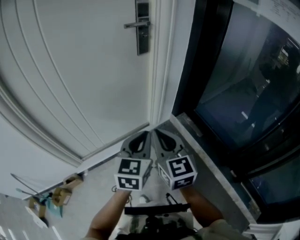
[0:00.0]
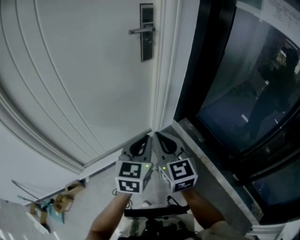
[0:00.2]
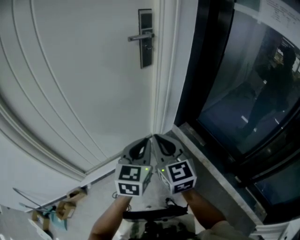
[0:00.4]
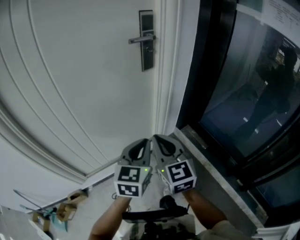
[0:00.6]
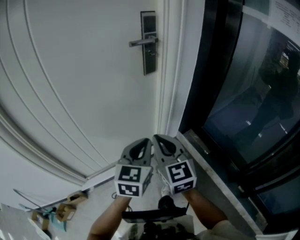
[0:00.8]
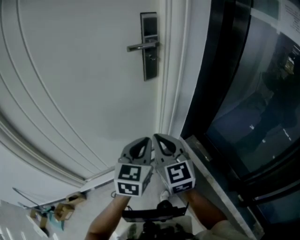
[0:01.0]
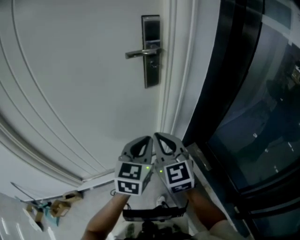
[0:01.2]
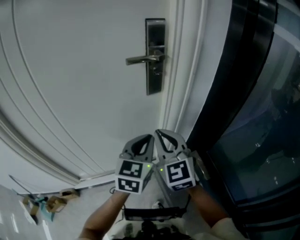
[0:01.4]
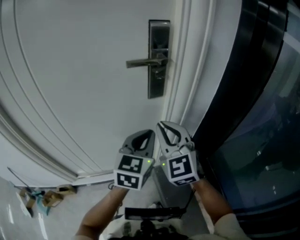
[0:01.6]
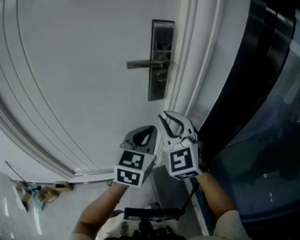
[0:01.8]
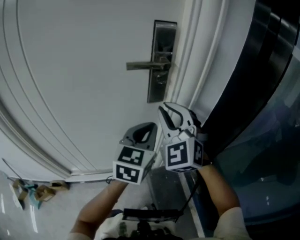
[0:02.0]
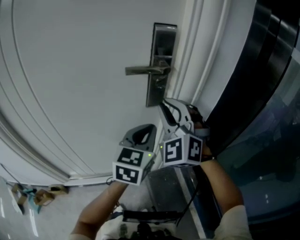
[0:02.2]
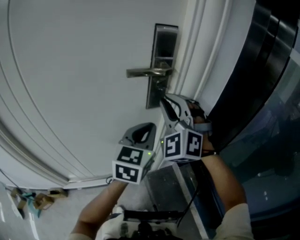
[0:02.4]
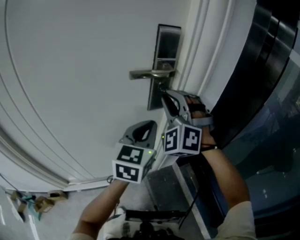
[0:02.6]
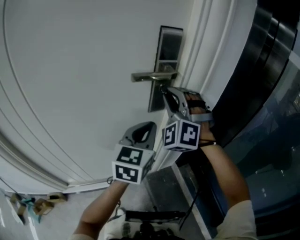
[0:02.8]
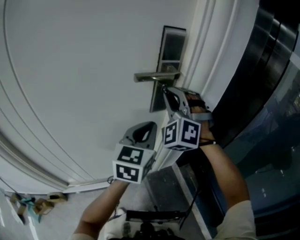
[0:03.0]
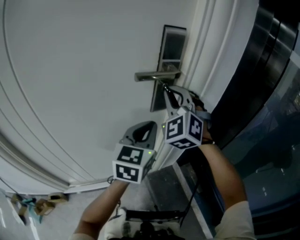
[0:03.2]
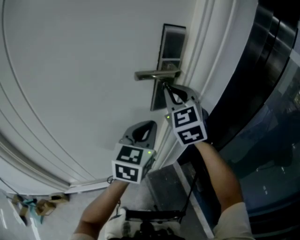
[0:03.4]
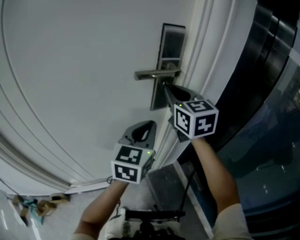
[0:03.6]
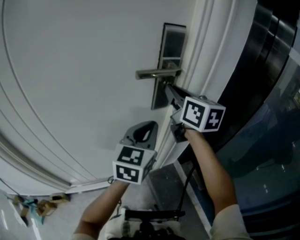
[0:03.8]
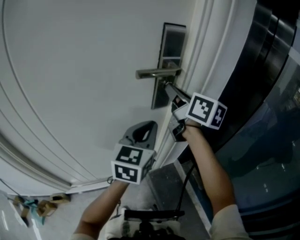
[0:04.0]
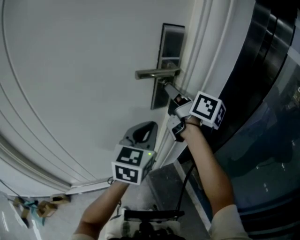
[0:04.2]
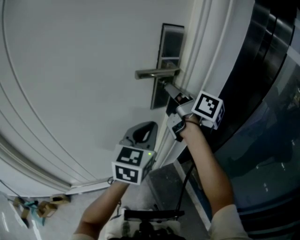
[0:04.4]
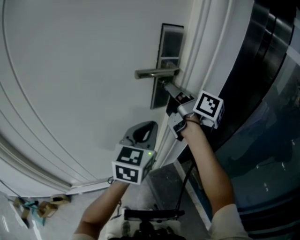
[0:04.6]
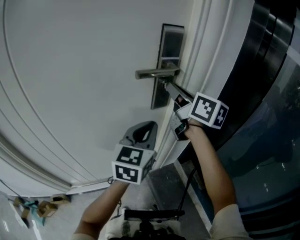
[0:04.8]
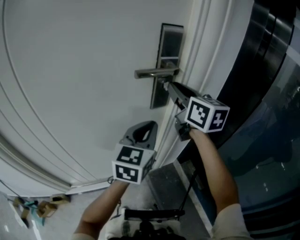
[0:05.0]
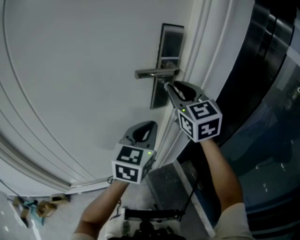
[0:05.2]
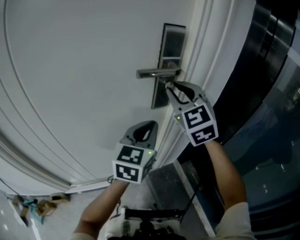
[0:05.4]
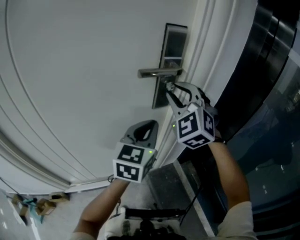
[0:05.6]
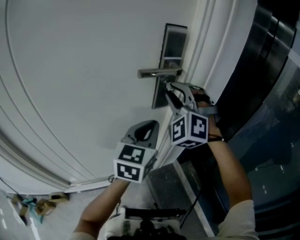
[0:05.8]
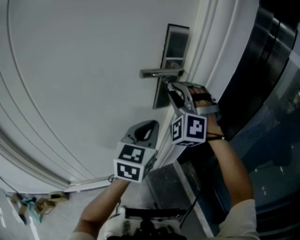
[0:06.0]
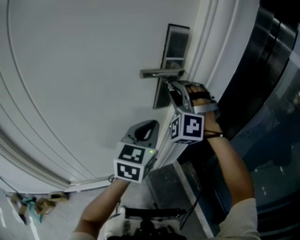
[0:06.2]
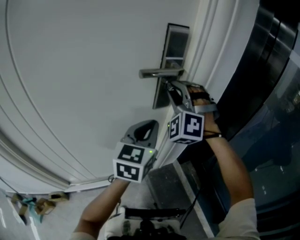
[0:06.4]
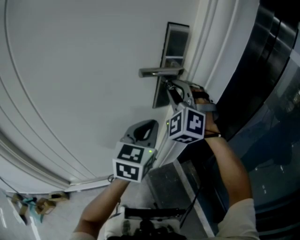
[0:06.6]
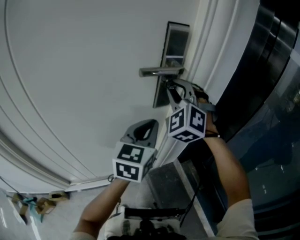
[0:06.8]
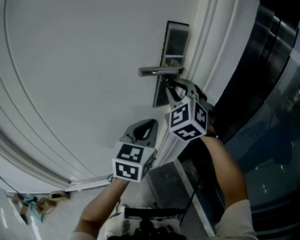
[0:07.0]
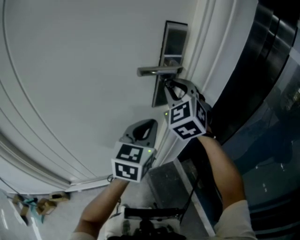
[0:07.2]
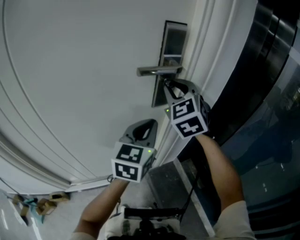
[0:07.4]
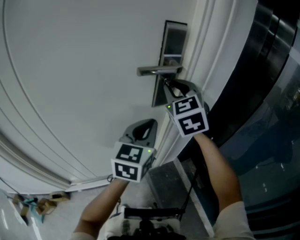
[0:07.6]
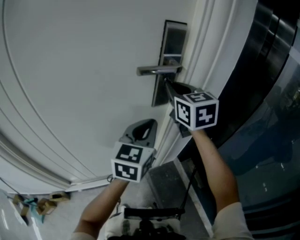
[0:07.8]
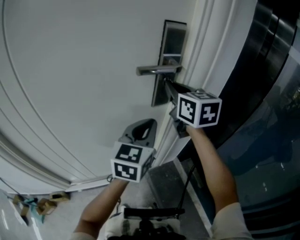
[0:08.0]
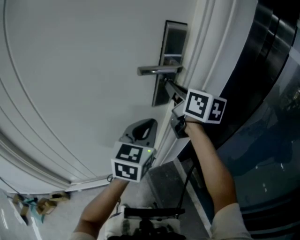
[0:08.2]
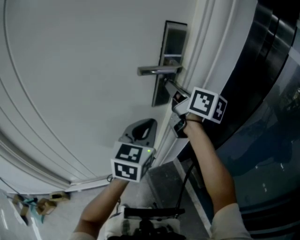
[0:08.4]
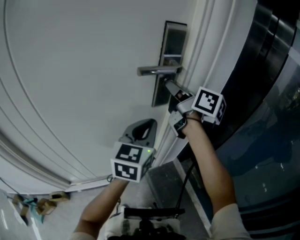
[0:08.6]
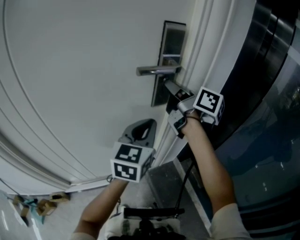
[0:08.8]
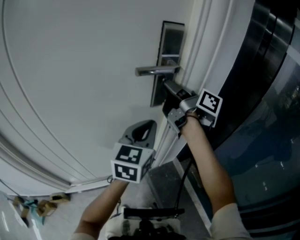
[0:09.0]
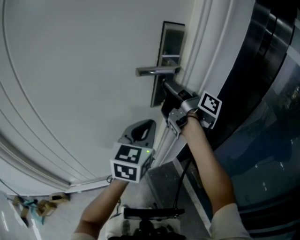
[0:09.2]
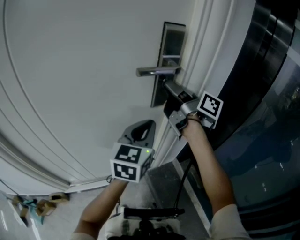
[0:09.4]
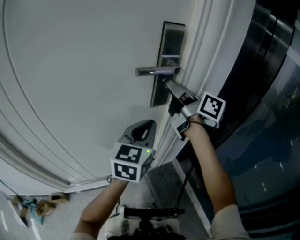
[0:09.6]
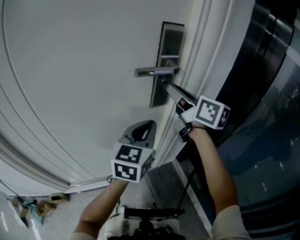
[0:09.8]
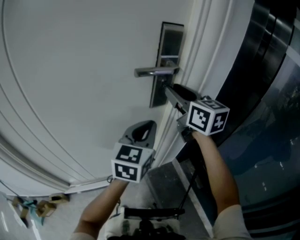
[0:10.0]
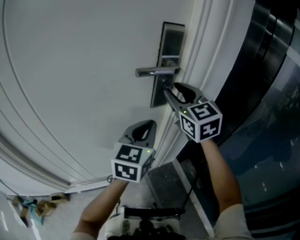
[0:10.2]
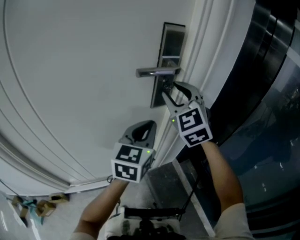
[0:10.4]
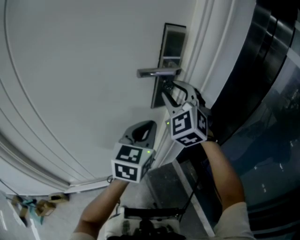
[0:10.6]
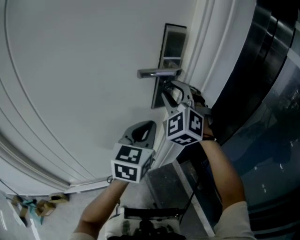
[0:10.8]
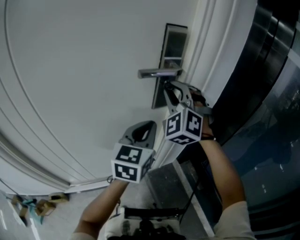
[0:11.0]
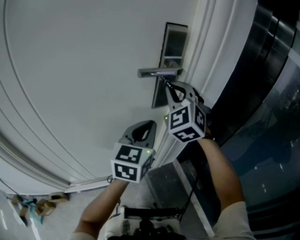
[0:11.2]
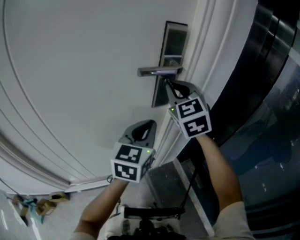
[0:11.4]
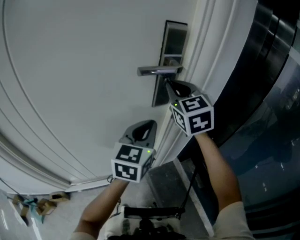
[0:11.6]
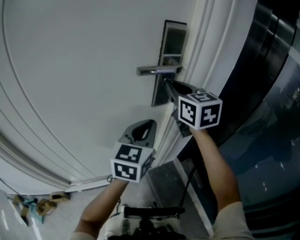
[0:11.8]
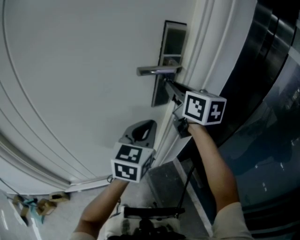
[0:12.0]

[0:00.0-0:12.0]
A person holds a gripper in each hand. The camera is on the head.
0:00.0 to 0:01.6: Both grippers travel together forward, approximately 30 cm. The right gripper swivels some 30 degrees.
0:01.6 to 0:03.0: The left gripper shifts approximately 10 cm forward; the right gripper moves forward and upward, roughly 20 cm, and twists some 50 degrees counterclockwise, seen from behind.
0:03.0 to 0:04.4: The right gripper rolls clockwise, seen from behind, by about 130 degrees.
0:04.4 to 0:06.0: The right gripper twists some 140 degrees counterclockwise, seen from behind.
0:06.0 to 0:07.6: The right gripper twists roughly 50 degrees clockwise, seen from behind.
0:07.6 to 0:09.0: The right gripper rolls clockwise, seen from behind, by approximately 100 degrees.
0:09.0 to 0:10.4: The right gripper twists approximately 110 degrees counterclockwise, seen from behind, and opens.
0:10.4 to 0:12.0: The right gripper twists roughly 50 degrees clockwise, seen from behind, and closes up.

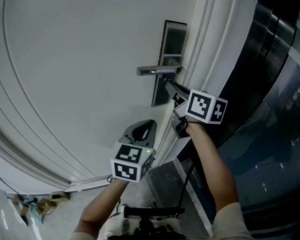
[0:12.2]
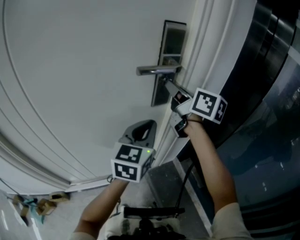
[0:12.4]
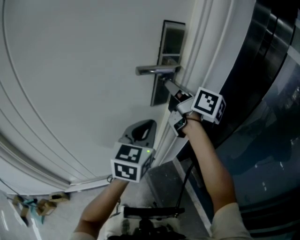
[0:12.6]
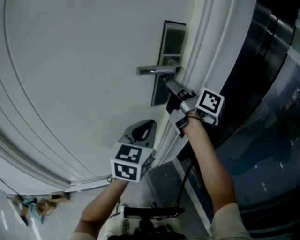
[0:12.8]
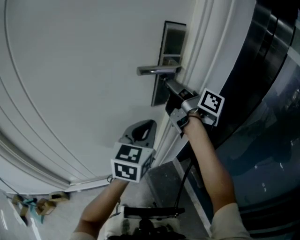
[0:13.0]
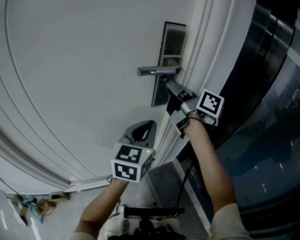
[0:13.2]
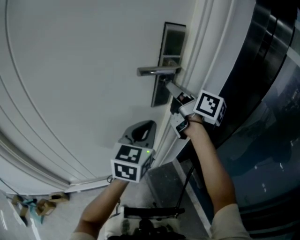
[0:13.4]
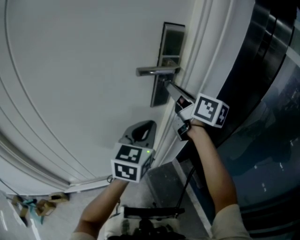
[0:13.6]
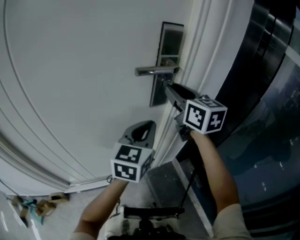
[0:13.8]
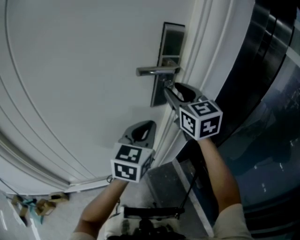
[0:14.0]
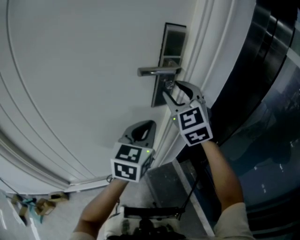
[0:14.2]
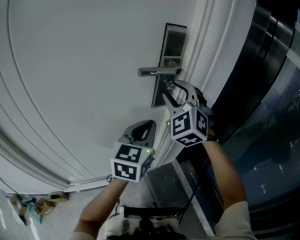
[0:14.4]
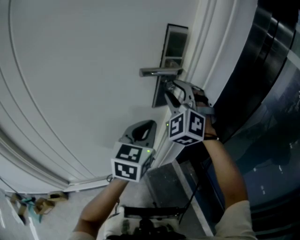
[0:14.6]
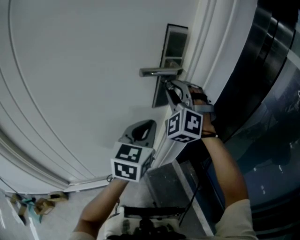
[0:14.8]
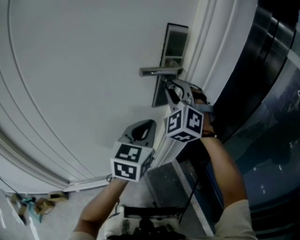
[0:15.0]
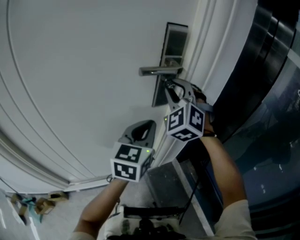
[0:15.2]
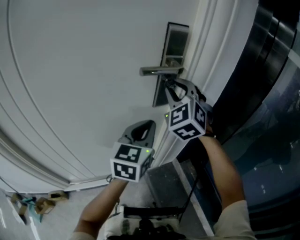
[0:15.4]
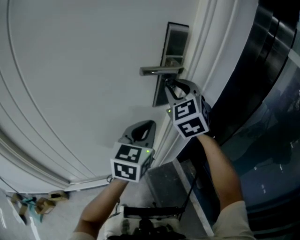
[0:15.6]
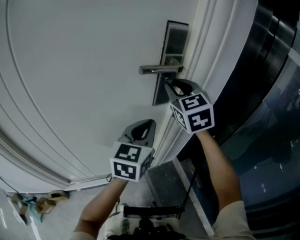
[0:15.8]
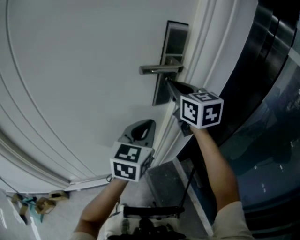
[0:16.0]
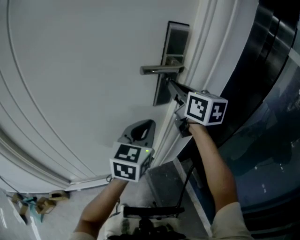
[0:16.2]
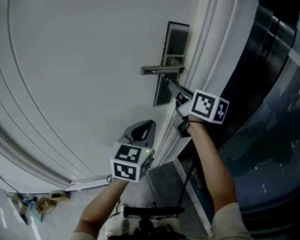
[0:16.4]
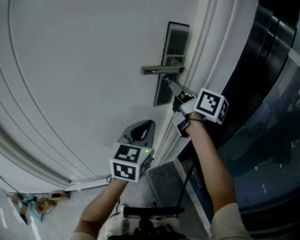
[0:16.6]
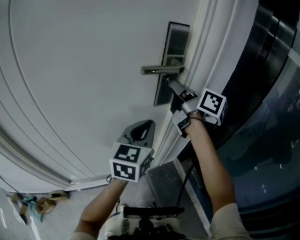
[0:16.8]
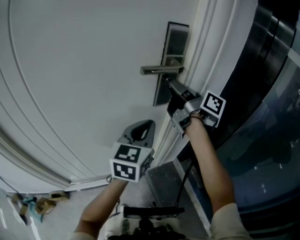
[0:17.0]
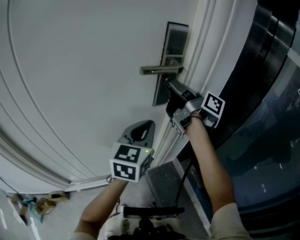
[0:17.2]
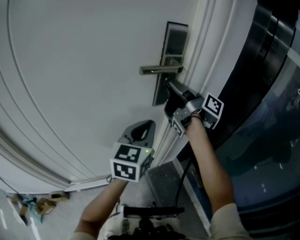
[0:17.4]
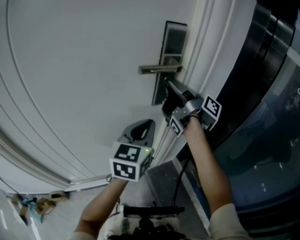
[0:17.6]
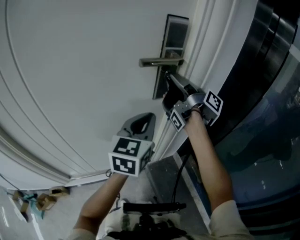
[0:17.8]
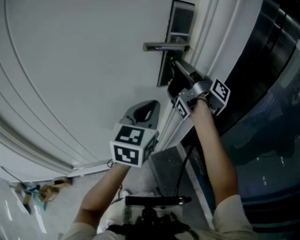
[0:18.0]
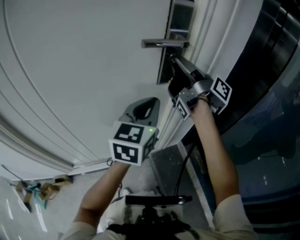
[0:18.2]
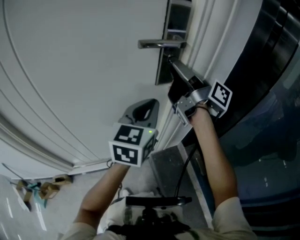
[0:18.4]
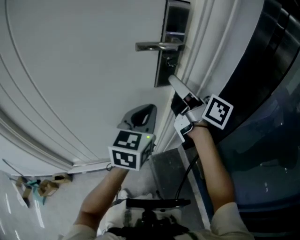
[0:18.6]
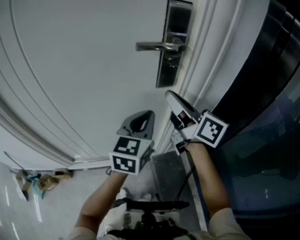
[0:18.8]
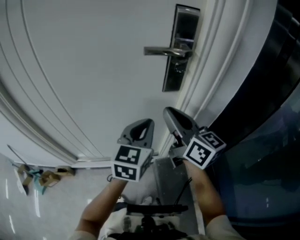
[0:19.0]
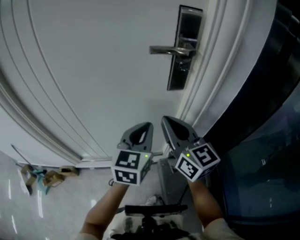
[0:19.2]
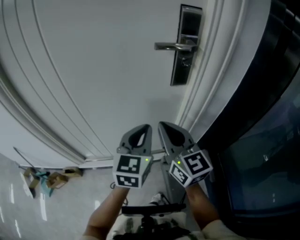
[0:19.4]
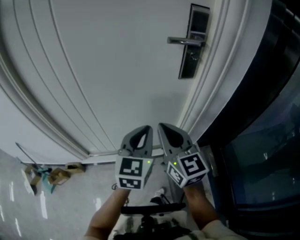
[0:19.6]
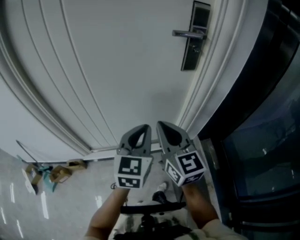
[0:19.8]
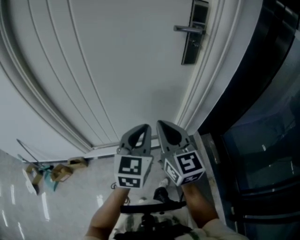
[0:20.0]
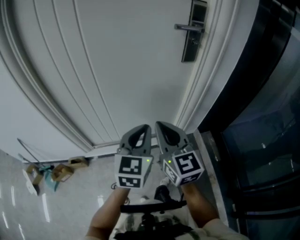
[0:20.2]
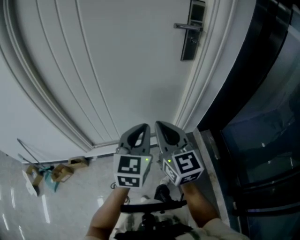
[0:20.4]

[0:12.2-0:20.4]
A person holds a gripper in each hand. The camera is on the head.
0:12.2 to 0:13.8: The right gripper opens its fingers.
0:13.8 to 0:15.4: The right gripper twists roughly 60 degrees counterclockwise, seen from behind.
0:15.4 to 0:17.2: The right gripper rolls clockwise, seen from behind, by about 120 degrees.
0:17.2 to 0:18.8: The right gripper heads backward, covering about 10 cm, and turns by roughly 30 degrees.
0:18.8 to 0:20.4: The left gripper is displaced backward and to the left by about 25 cm. Meanwhile the right gripper shifts approximately 30 cm backward, to the left and downward, turns by some 40 degrees, and closes up.

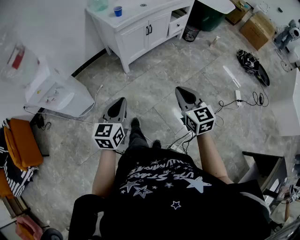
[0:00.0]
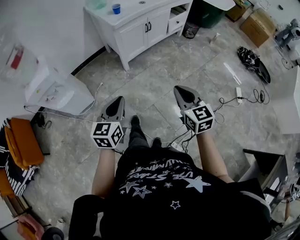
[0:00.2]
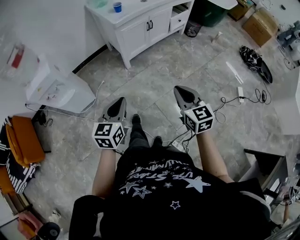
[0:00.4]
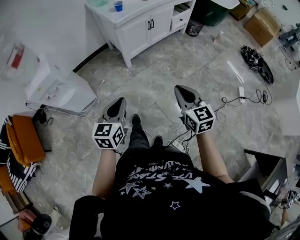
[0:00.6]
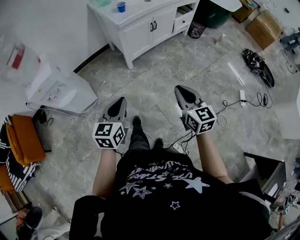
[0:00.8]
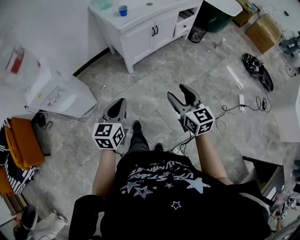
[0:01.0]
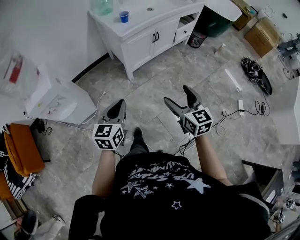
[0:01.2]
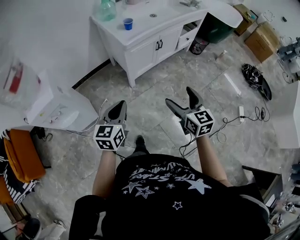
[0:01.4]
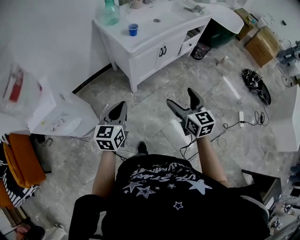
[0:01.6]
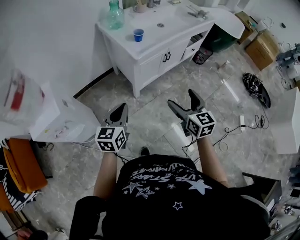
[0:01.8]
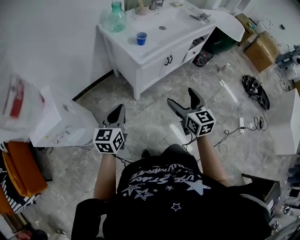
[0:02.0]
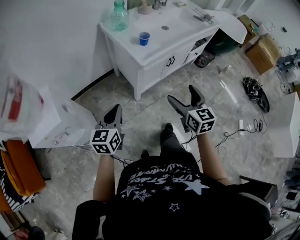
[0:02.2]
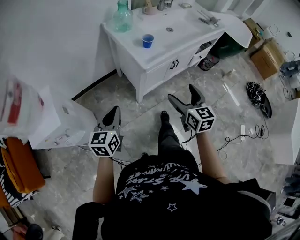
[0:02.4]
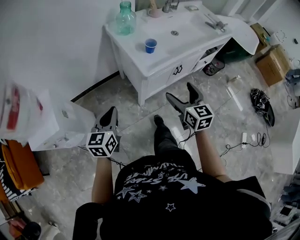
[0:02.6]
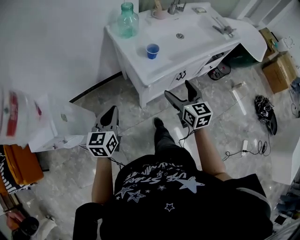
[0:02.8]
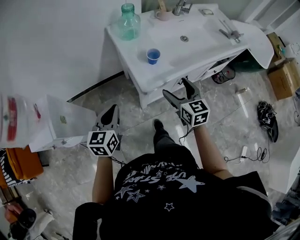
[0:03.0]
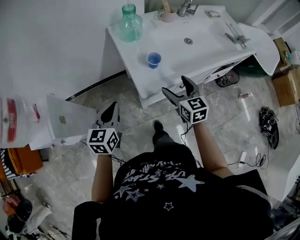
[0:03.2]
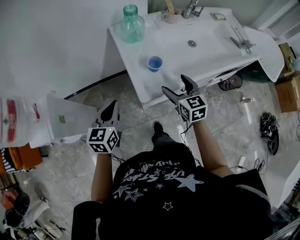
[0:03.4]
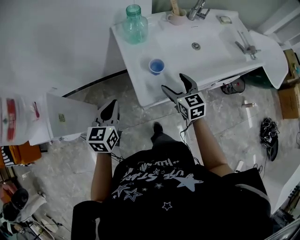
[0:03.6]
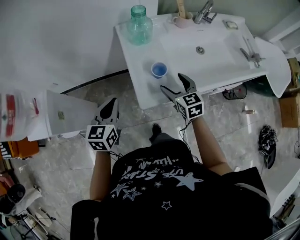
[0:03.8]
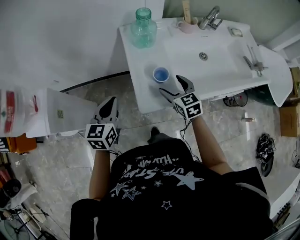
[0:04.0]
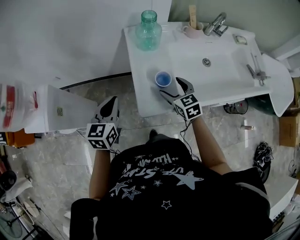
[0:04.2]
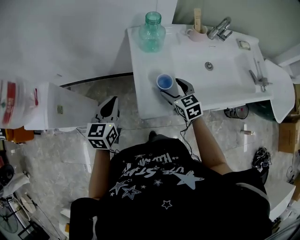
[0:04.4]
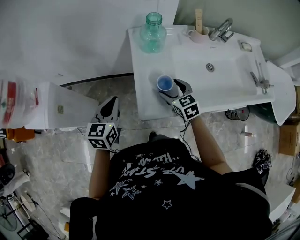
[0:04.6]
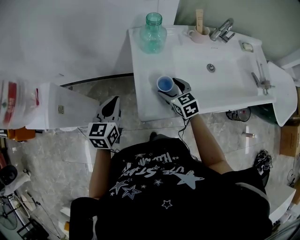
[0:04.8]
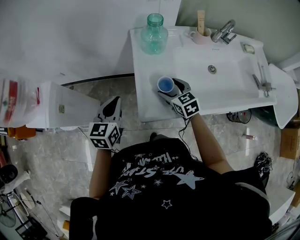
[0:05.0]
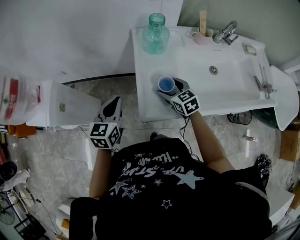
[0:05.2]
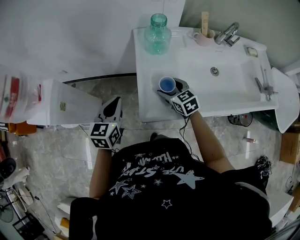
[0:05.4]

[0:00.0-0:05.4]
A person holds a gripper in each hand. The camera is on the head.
0:00.0 to 0:01.4: The grippers both shift forward by about 20 cm. The right gripper opens.
0:01.4 to 0:02.8: The left gripper is displaced forward and to the left by roughly 30 cm, while the right gripper moves forward, roughly 35 cm.
0:02.8 to 0:04.0: The two grippers go some 20 cm forward. The right gripper rotates some 30 degrees.
0:04.0 to 0:05.4: The right gripper heads forward, covering some 5 cm.
